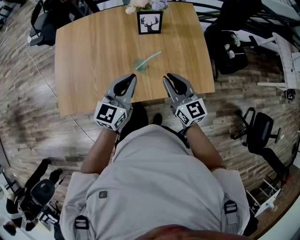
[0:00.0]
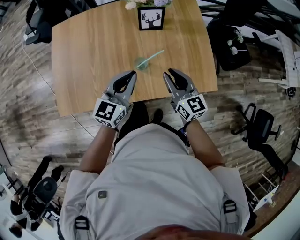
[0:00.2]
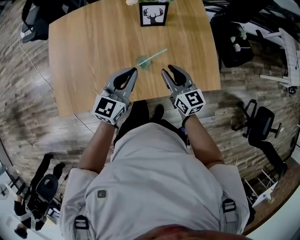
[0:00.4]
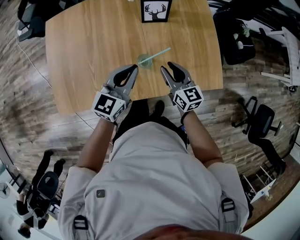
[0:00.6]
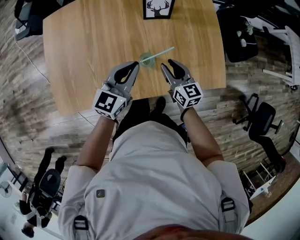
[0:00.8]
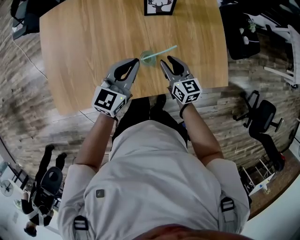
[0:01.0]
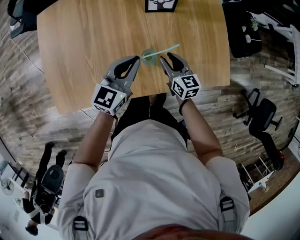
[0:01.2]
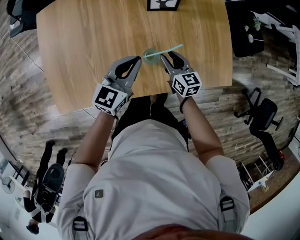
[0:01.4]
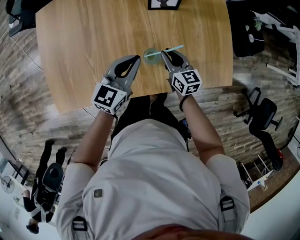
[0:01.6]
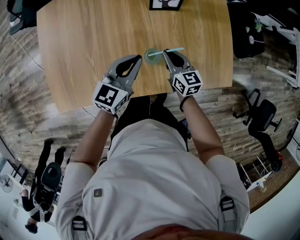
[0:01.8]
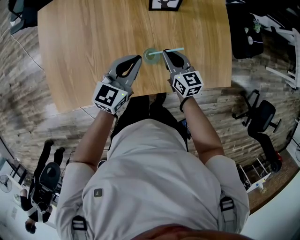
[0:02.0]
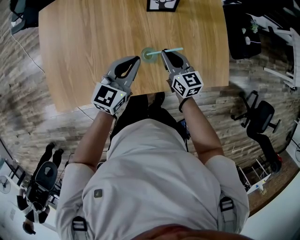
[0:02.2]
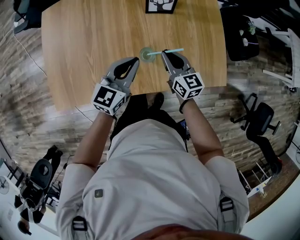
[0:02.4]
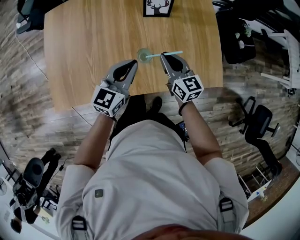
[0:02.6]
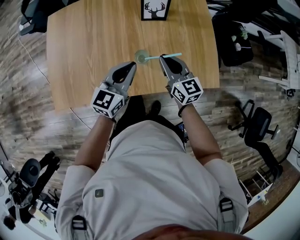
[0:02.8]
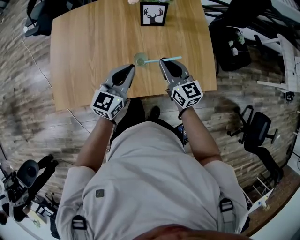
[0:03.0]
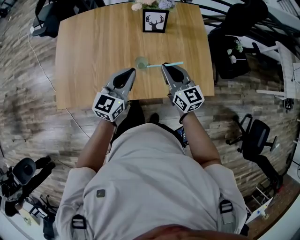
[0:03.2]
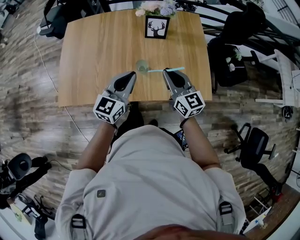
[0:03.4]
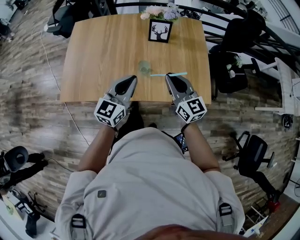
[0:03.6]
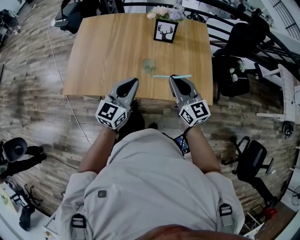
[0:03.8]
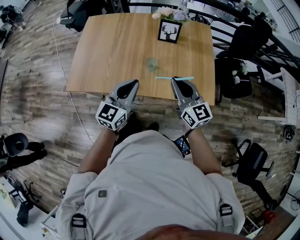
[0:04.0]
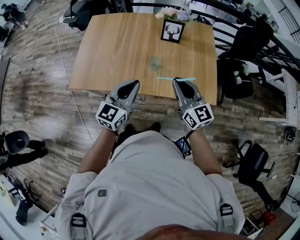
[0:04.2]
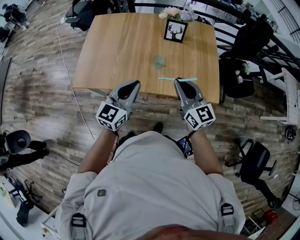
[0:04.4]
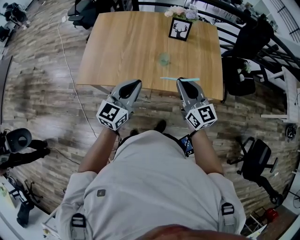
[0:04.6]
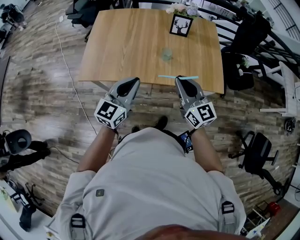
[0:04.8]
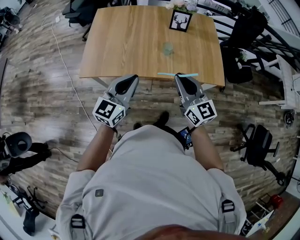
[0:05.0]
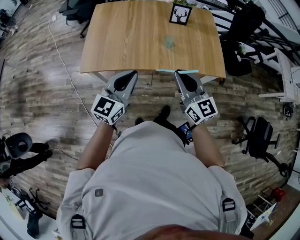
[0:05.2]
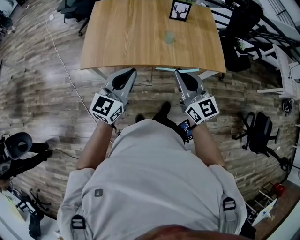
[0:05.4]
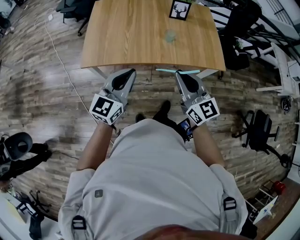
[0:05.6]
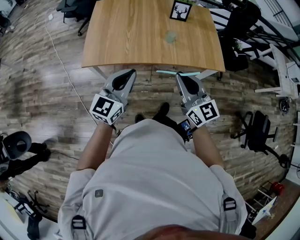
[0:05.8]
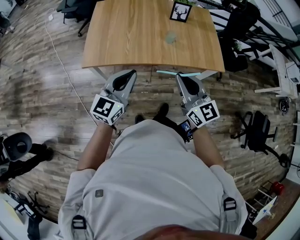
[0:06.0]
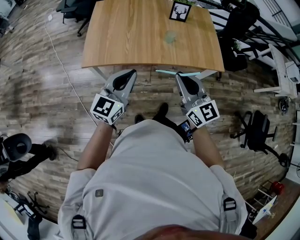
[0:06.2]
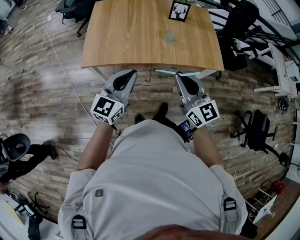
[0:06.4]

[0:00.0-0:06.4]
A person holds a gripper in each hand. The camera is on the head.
0:00.0 to 0:01.6: The right gripper shifts roughly 25 cm downward and forward, and changes its angle by some 20 degrees, while the left gripper goes about 20 cm downward, forward and to the left.
0:01.6 to 0:03.2: The right gripper goes some 25 cm upward and backward, and swivels about 20 degrees. The left gripper goes some 15 cm backward and upward.
0:03.2 to 0:04.8: The right gripper goes some 25 cm backward and upward, while the left gripper travels backward and to the left by roughly 25 cm.
0:04.8 to 0:06.4: Both grippers move backward and to the left, some 15 cm.

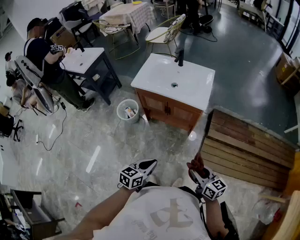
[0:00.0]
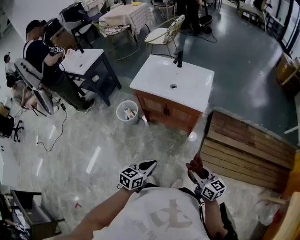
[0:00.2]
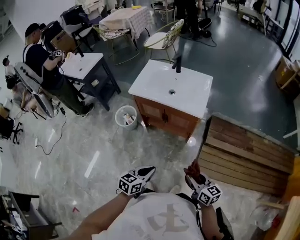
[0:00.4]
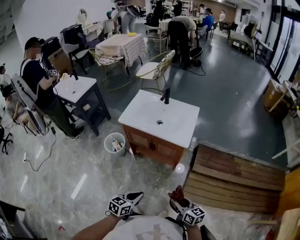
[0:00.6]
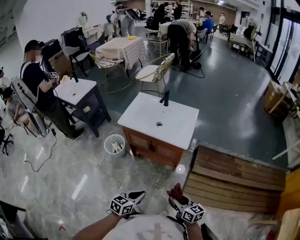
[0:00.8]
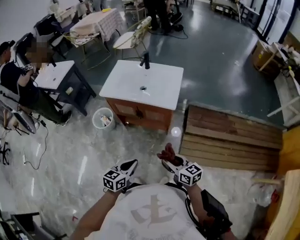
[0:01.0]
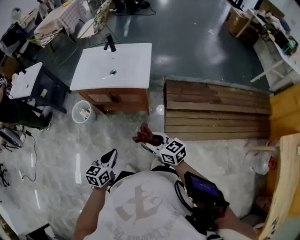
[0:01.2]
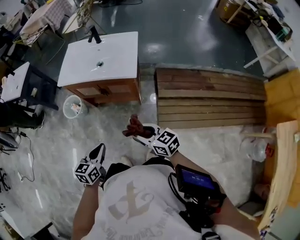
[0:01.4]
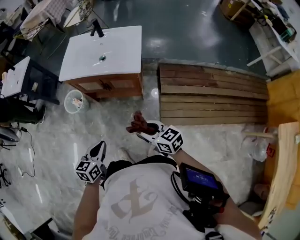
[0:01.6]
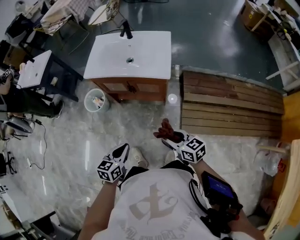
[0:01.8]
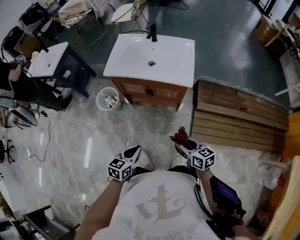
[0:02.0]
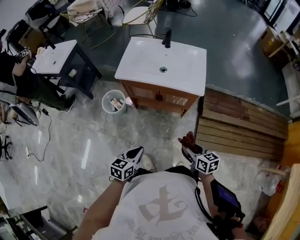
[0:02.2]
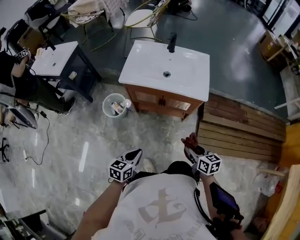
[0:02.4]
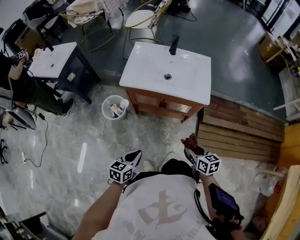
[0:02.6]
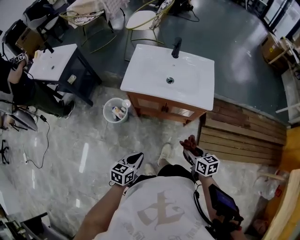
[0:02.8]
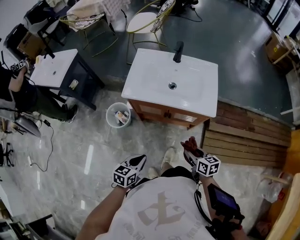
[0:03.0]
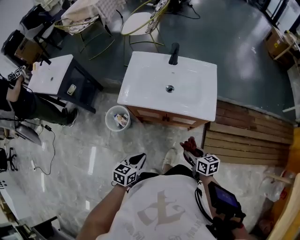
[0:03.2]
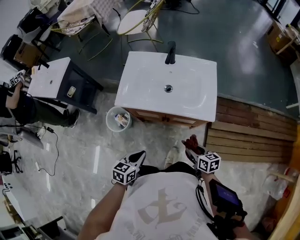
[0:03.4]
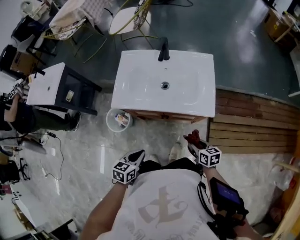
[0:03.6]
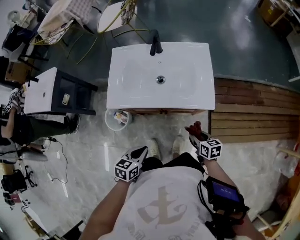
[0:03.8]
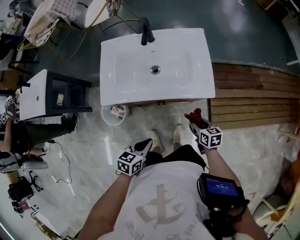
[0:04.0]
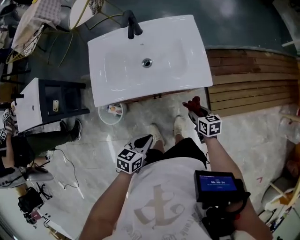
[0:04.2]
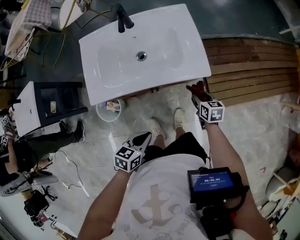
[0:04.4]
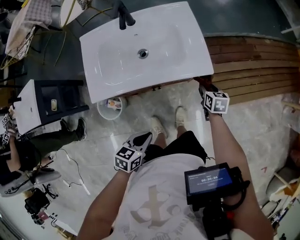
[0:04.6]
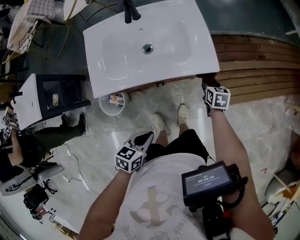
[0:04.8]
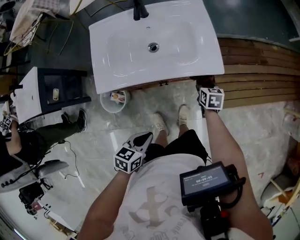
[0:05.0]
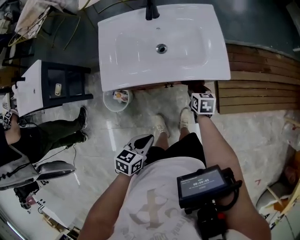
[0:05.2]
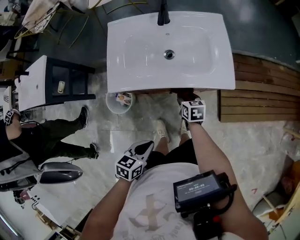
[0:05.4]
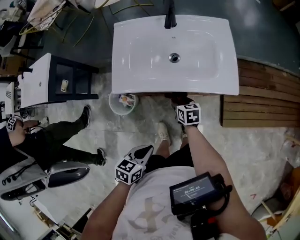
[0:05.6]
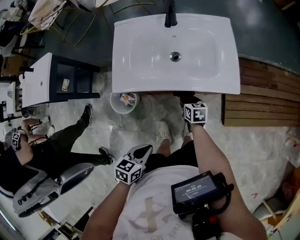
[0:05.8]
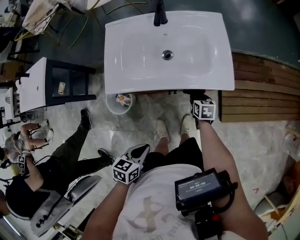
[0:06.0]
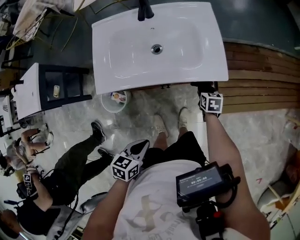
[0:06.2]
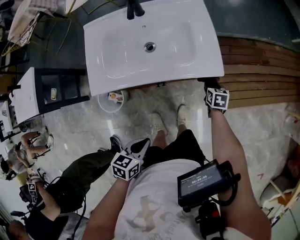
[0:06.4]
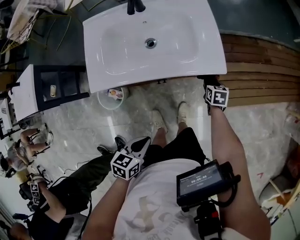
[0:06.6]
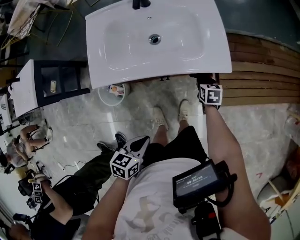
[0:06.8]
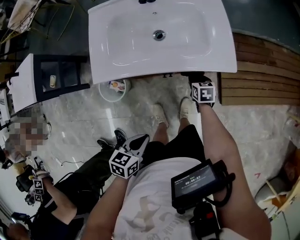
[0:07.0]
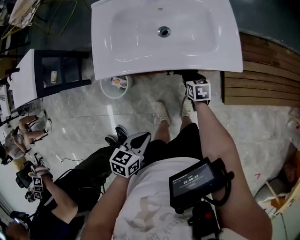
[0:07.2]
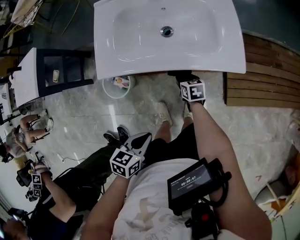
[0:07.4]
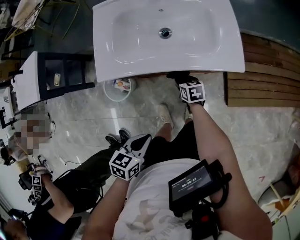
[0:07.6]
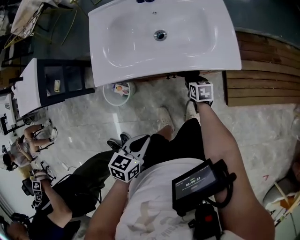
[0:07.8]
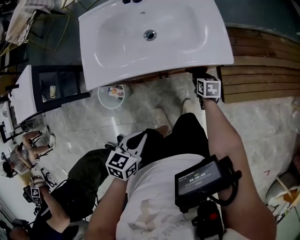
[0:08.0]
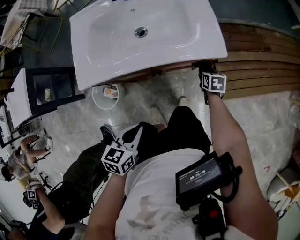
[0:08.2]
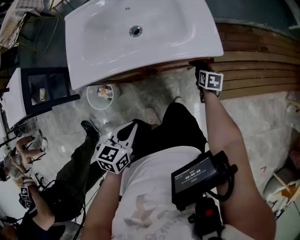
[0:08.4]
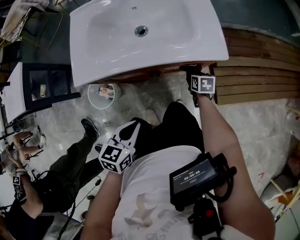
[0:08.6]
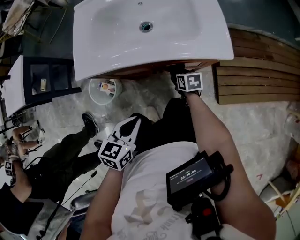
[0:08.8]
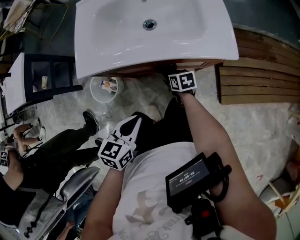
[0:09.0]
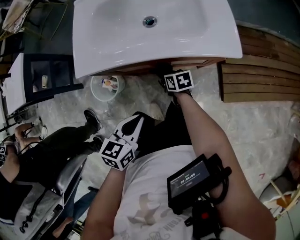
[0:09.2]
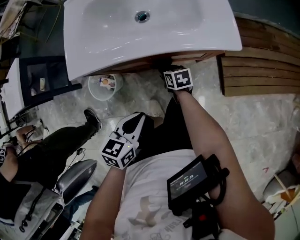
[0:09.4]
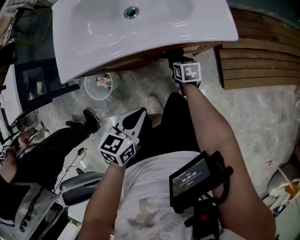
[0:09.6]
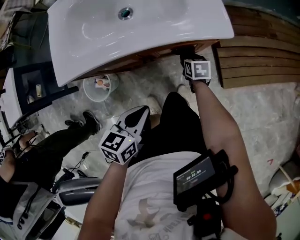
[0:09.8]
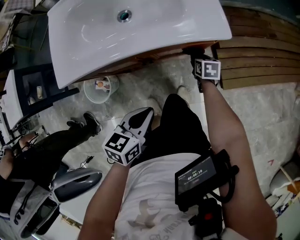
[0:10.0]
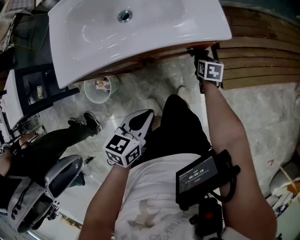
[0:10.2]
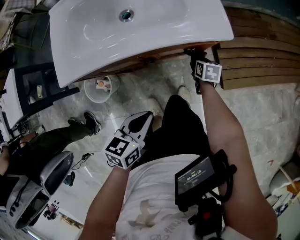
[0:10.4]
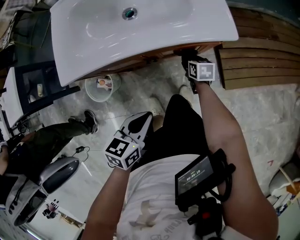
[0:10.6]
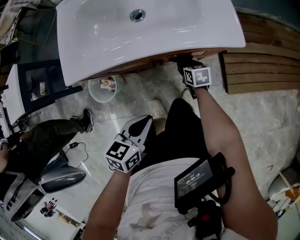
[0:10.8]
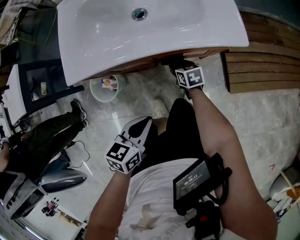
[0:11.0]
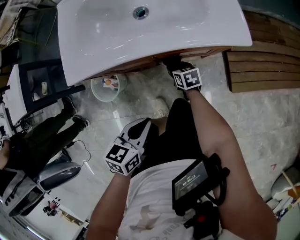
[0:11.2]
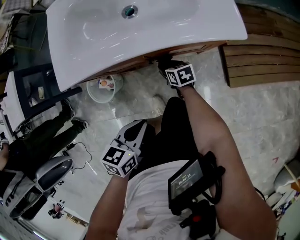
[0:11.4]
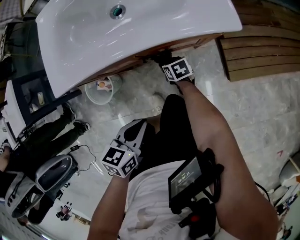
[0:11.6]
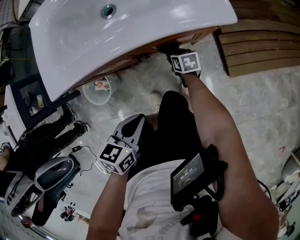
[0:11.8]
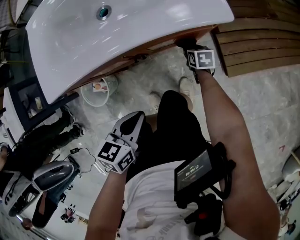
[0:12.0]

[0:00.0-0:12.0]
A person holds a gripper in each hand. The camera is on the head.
0:00.0 to 0:01.6: The left gripper moves roughly 5 cm. The right gripper travels forward by some 5 cm.
0:01.6 to 0:03.0: The right gripper moves forward, to the left and downward, roughly 20 cm, and turns by about 30 degrees. The left gripper is displaced to the left and forward by roughly 20 cm.
0:03.0 to 0:04.4: The left gripper ends up about 15 cm from where it was, and changes its angle by roughly 30 degrees; the right gripper moves roughly 20 cm, and rotates approximately 30 degrees.
0:04.4 to 0:06.0: The left gripper shifts roughly 10 cm backward and to the left. The right gripper goes roughly 15 cm to the left and downward.
0:06.0 to 0:07.6: The right gripper moves to the left, about 10 cm.
0:07.6 to 0:09.0: The right gripper travels to the right and back again, roughly 25 cm each way. Meanwhile the left gripper goes about 5 cm forward.
0:09.0 to 0:10.4: The left gripper moves roughly 10 cm. Meanwhile the right gripper moves about 20 cm, and swivels approximately 30 degrees.
0:10.4 to 0:12.0: The right gripper is displaced downward by some 5 cm, and goes to the left and returns, roughly 20 cm each way.

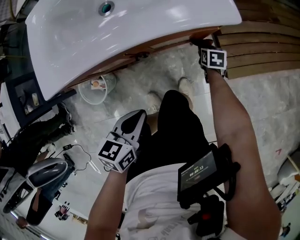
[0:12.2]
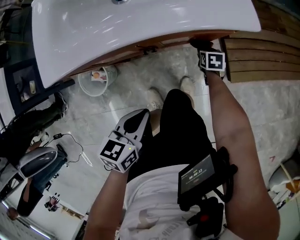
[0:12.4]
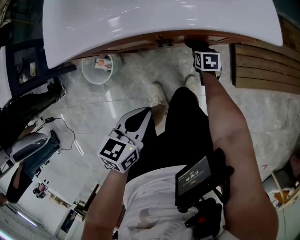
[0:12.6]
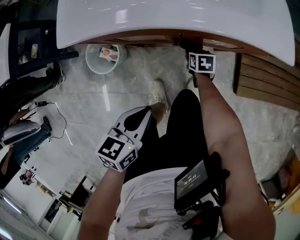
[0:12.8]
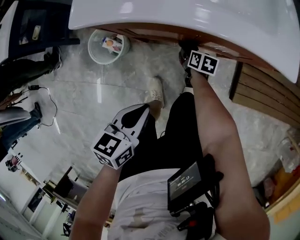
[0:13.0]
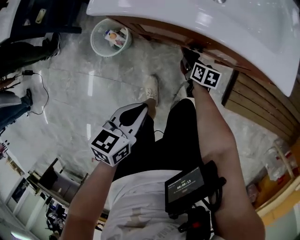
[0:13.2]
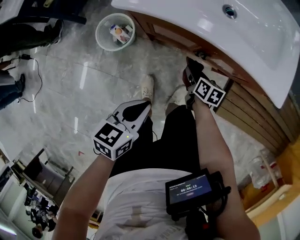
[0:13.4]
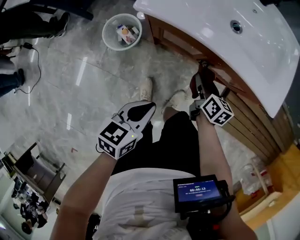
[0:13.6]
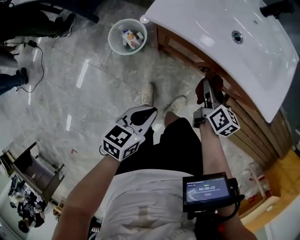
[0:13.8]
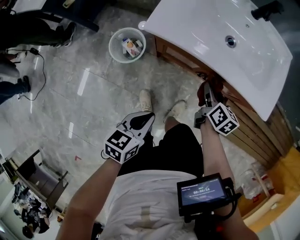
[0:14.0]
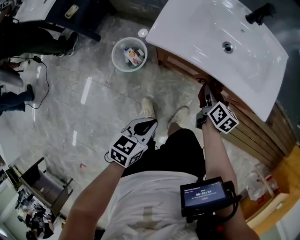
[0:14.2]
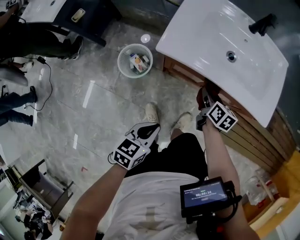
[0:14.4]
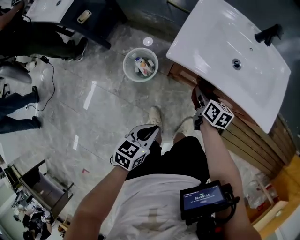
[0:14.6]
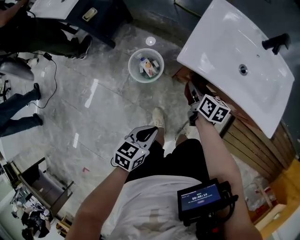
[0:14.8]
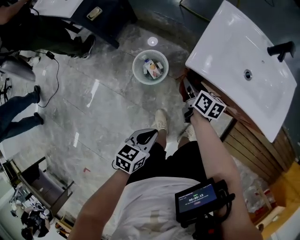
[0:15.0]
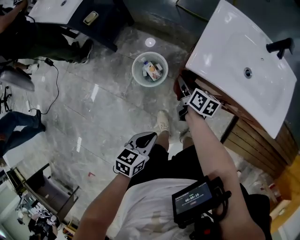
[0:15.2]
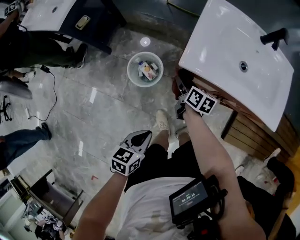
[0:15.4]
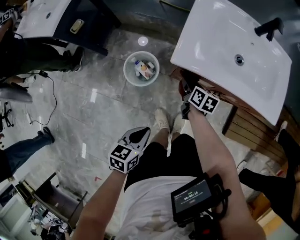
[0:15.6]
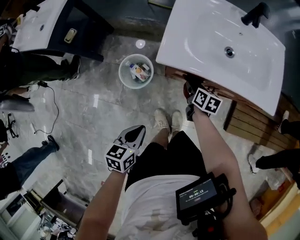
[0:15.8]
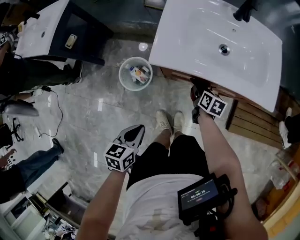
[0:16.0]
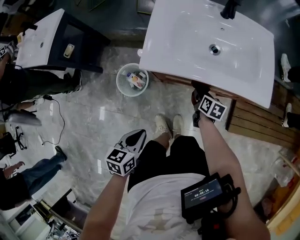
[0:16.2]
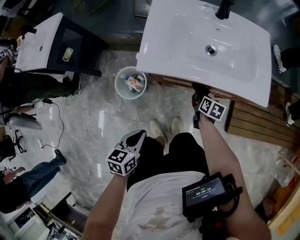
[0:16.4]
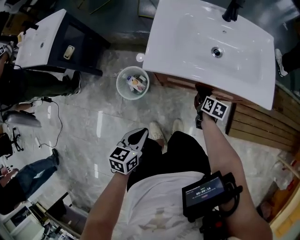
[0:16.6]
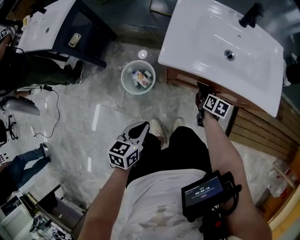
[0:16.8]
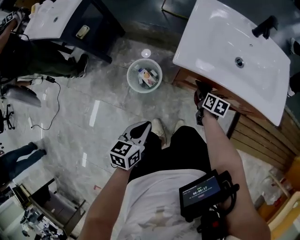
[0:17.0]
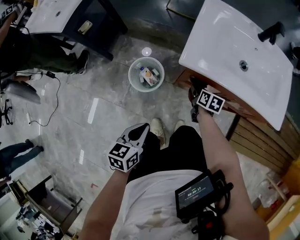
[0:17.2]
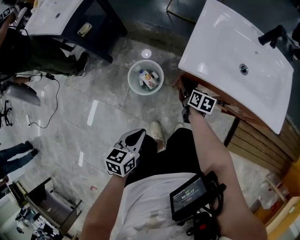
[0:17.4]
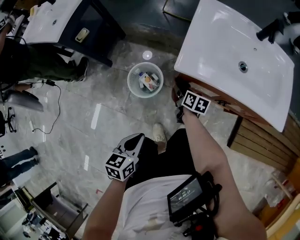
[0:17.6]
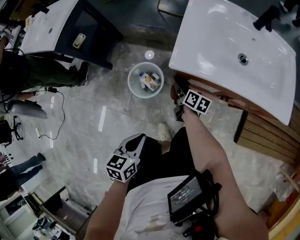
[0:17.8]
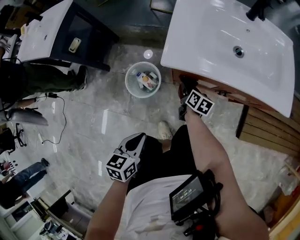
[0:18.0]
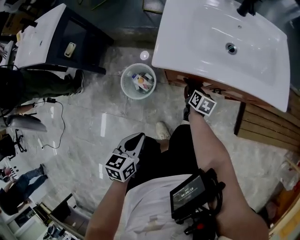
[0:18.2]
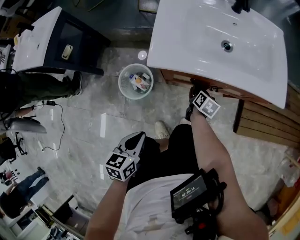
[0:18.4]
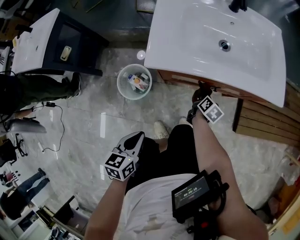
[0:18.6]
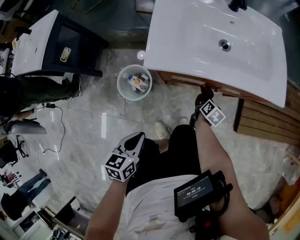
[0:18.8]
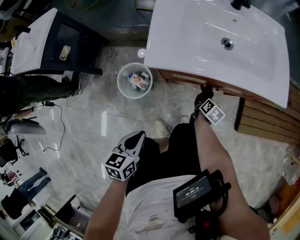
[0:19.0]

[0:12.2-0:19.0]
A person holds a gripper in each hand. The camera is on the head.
0:12.2 to 0:13.6: The right gripper changes place by roughly 35 cm, and rotates approximately 30 degrees. Meanwhile the left gripper shifts by some 15 cm, and turns by approximately 30 degrees.
0:13.6 to 0:15.0: The right gripper heads to the left, covering roughly 25 cm. Meanwhile the left gripper shifts some 15 cm to the left.
0:15.0 to 0:16.2: The right gripper is displaced to the right by about 20 cm, and turns by approximately 30 degrees.
0:16.2 to 0:17.6: The left gripper moves to the left, approximately 10 cm. The right gripper goes approximately 25 cm to the left.
0:17.6 to 0:19.0: The right gripper changes place by approximately 25 cm, and swivels about 40 degrees; the left gripper shifts by approximately 5 cm.
